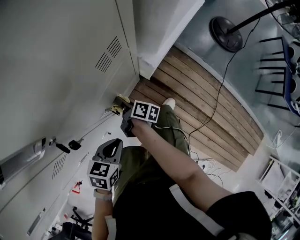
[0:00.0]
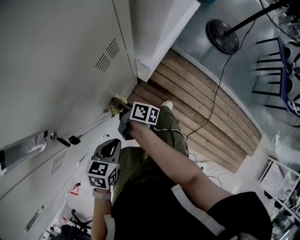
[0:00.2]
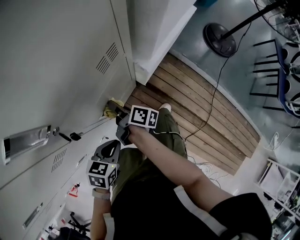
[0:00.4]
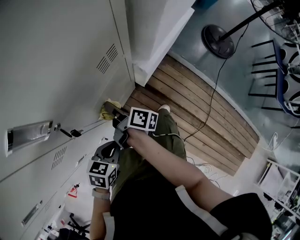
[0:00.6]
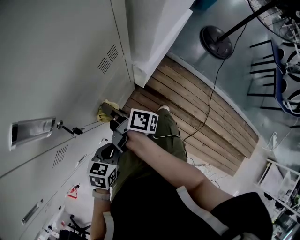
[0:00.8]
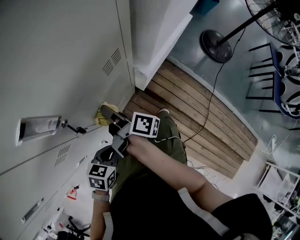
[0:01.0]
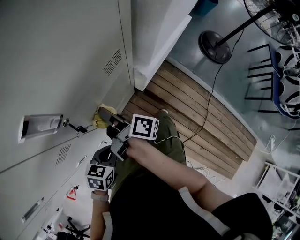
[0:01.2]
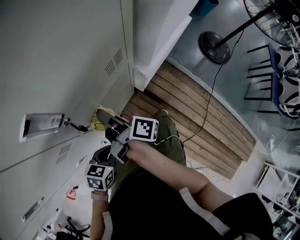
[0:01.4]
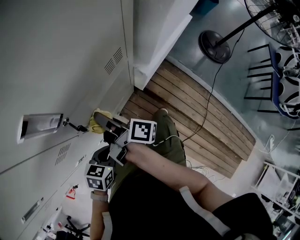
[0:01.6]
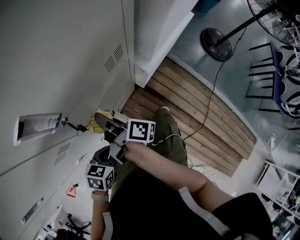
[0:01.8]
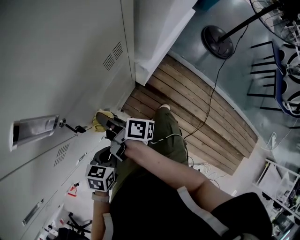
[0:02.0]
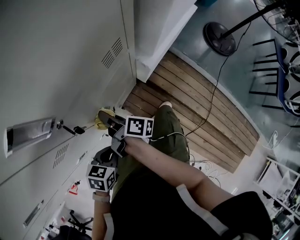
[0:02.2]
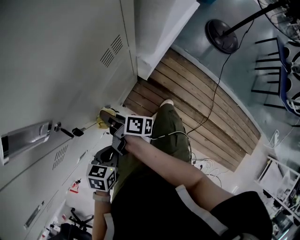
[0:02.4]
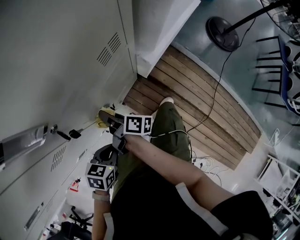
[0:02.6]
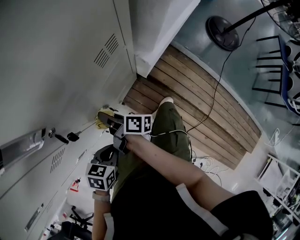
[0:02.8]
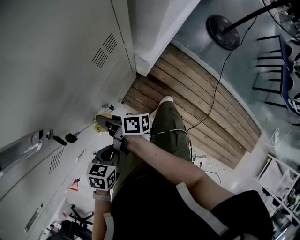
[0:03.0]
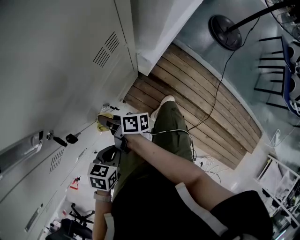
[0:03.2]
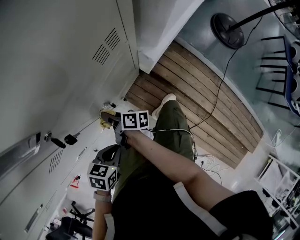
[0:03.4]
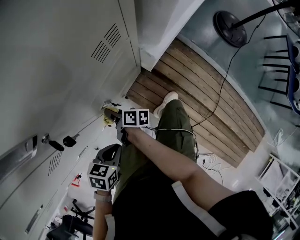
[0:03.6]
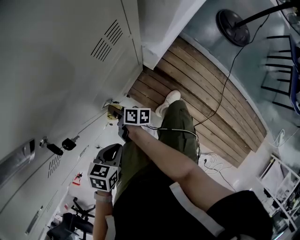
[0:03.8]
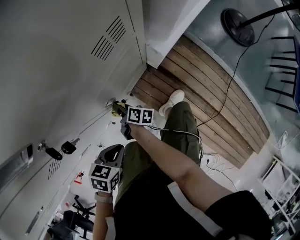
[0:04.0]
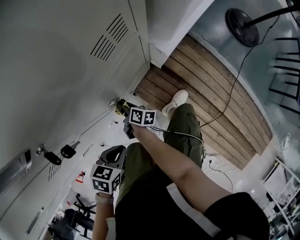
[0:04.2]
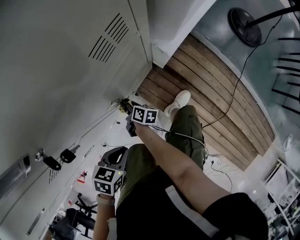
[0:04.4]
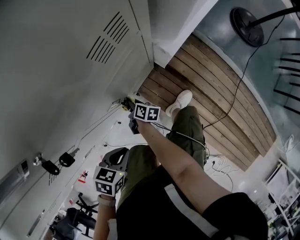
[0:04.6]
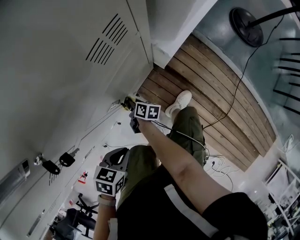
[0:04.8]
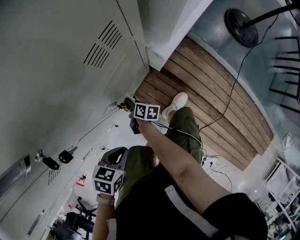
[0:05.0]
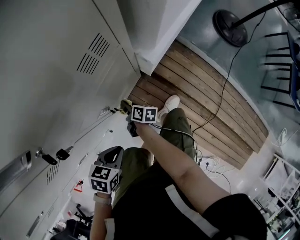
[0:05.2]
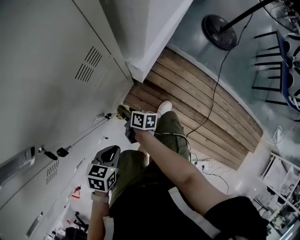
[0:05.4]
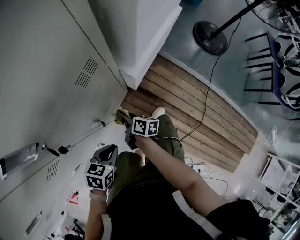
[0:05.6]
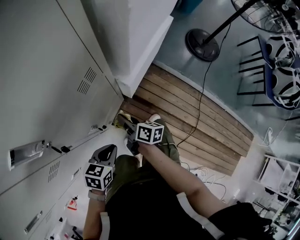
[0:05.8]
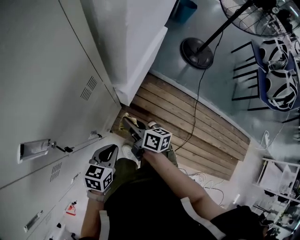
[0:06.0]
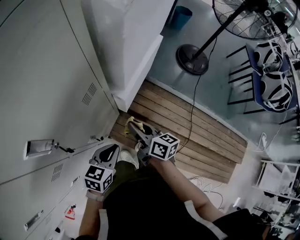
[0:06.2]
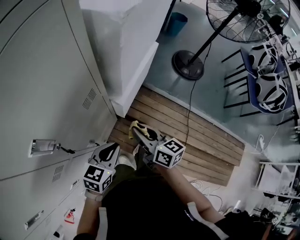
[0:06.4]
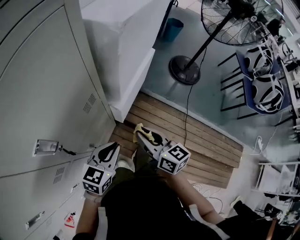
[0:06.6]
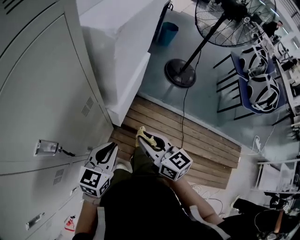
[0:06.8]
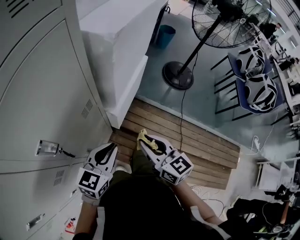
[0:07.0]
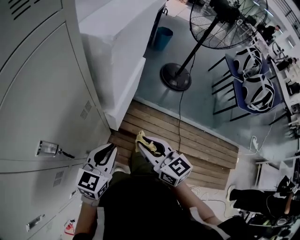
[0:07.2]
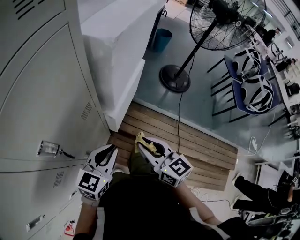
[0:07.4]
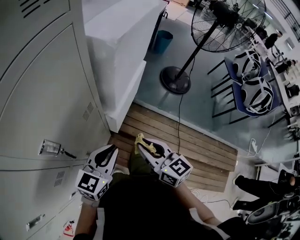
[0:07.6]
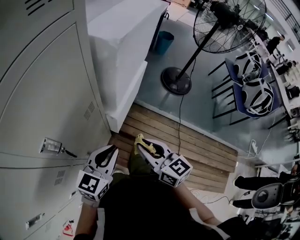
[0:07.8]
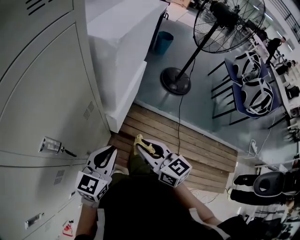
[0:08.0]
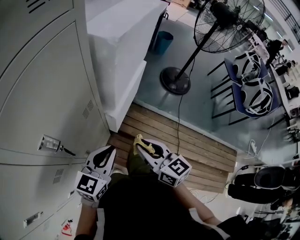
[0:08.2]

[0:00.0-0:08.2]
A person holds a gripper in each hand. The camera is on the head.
0.0 to 1.6 s: The right gripper goes approximately 25 cm upward, and swivels approximately 30 degrees.
1.6 to 3.2 s: The right gripper heads downward, covering approximately 15 cm.
3.2 to 5.0 s: The right gripper heads downward, covering approximately 20 cm, and swivels roughly 30 degrees.
5.0 to 6.6 s: The right gripper moves upward and to the right, approximately 50 cm, and changes its angle by approximately 50 degrees, while the left gripper goes approximately 30 cm upward, forward and to the right, and angles its fingers upward, by some 30 degrees.
6.6 to 8.2 s: The two grippers go about 5 cm upward.

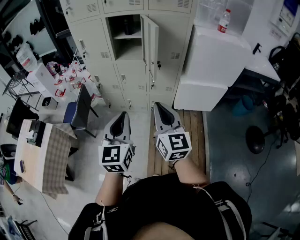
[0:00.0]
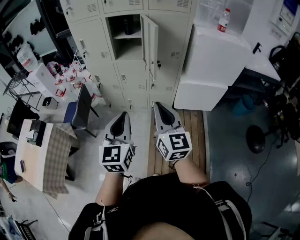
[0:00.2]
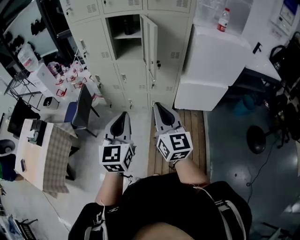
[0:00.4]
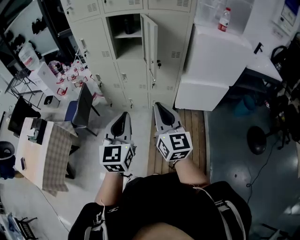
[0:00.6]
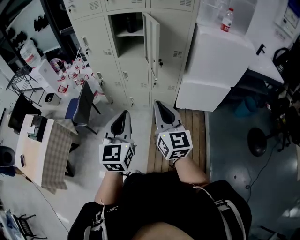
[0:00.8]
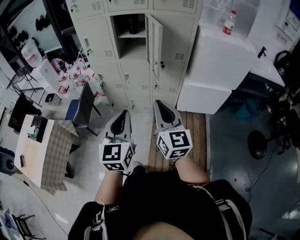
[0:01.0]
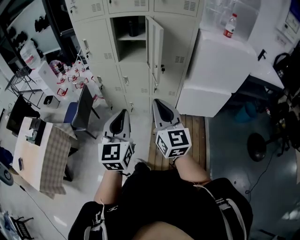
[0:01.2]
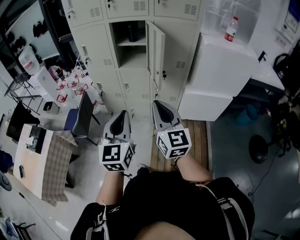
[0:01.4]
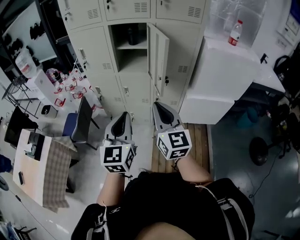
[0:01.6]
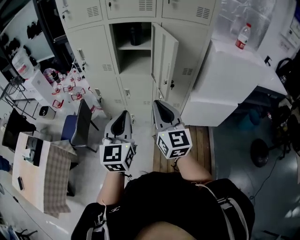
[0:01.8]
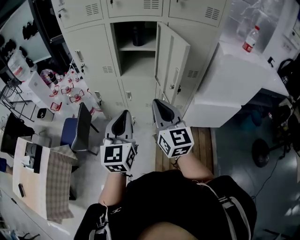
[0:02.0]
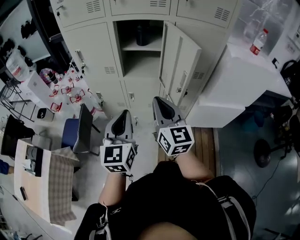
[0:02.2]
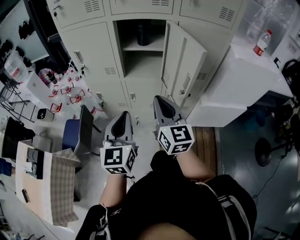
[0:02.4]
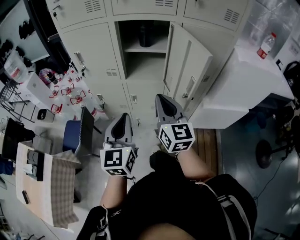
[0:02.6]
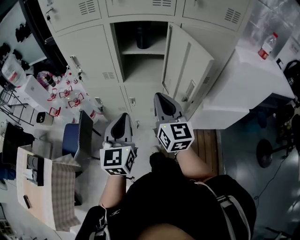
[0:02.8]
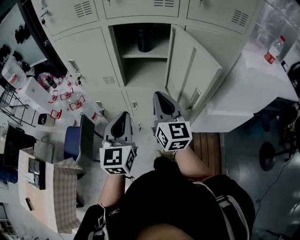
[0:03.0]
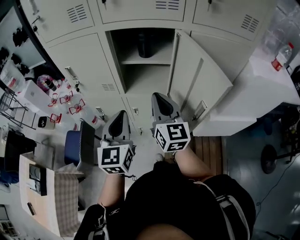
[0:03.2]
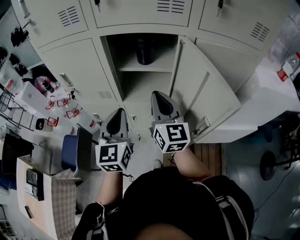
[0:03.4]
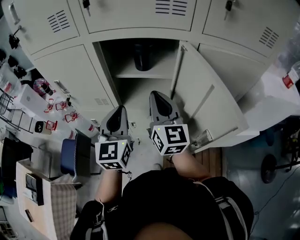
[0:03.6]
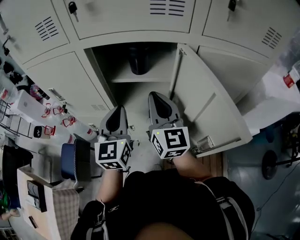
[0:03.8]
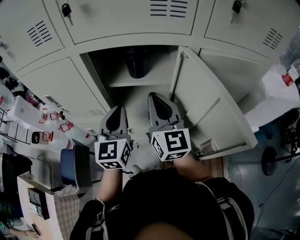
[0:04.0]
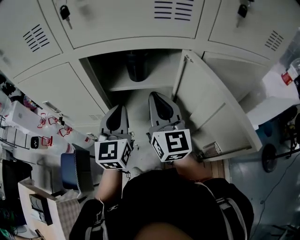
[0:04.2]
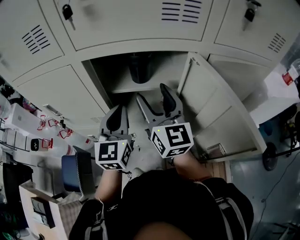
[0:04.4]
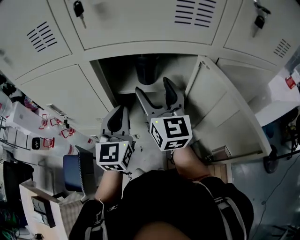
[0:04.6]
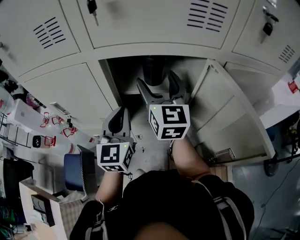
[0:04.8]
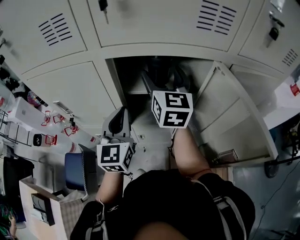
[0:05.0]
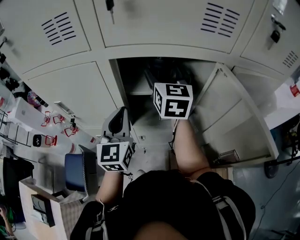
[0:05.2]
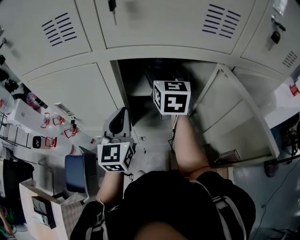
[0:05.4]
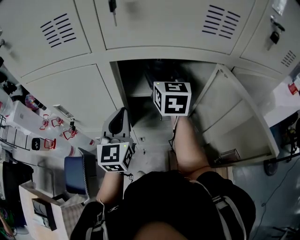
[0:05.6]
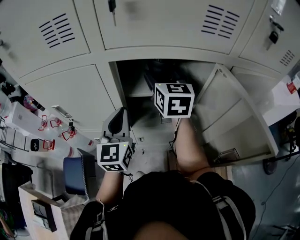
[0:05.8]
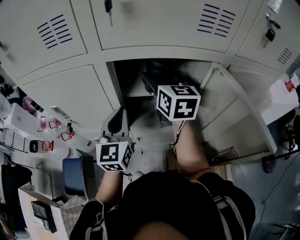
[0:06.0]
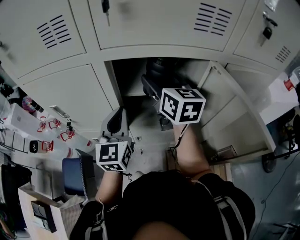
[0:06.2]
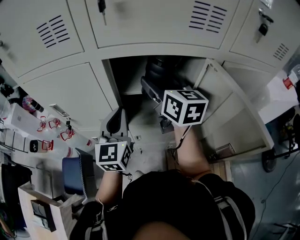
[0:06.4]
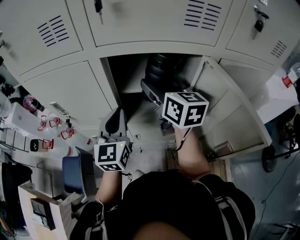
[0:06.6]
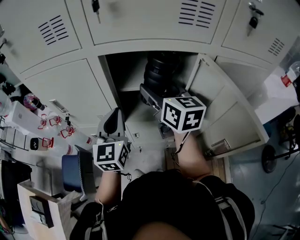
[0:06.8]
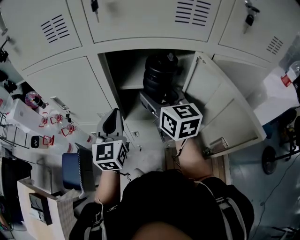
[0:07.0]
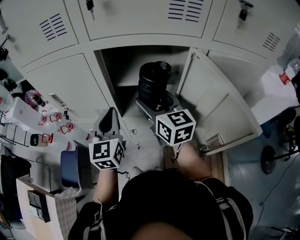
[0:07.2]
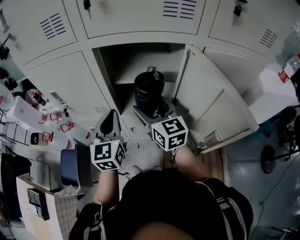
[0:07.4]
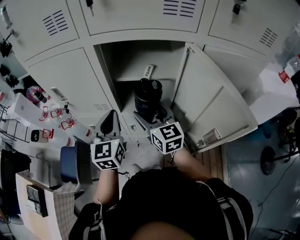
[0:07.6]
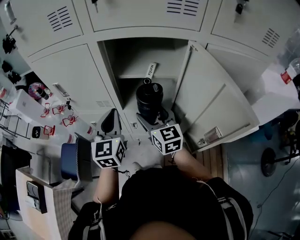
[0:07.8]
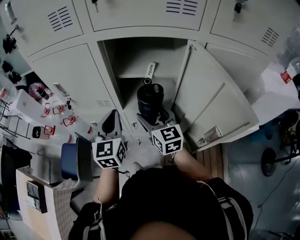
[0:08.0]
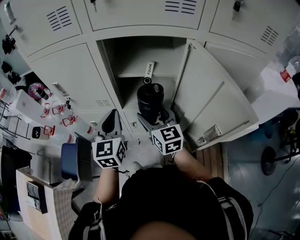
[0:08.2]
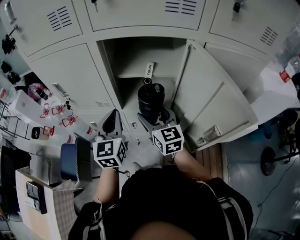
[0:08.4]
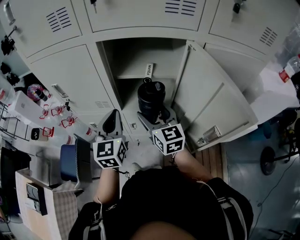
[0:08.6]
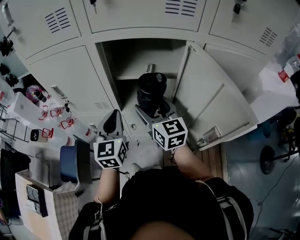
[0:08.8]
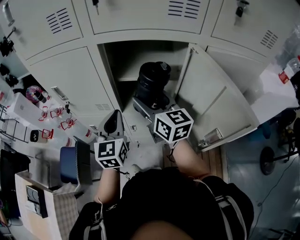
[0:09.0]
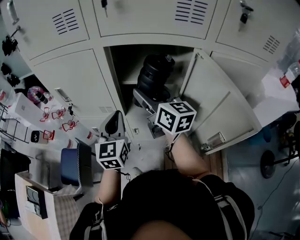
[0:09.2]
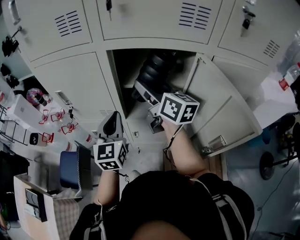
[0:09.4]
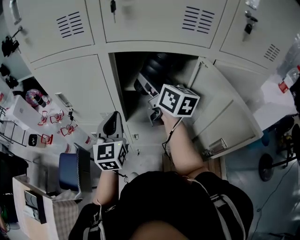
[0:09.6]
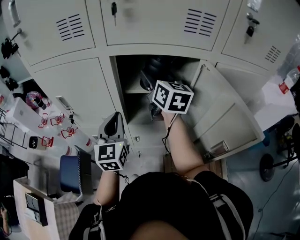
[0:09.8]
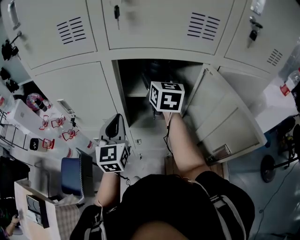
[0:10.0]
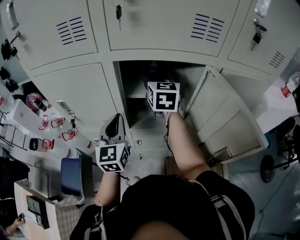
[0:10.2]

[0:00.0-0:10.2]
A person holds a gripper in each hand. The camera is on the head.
0.0 to 1.4 s: Both grippers travel together forward, some 10 cm.
1.4 to 3.0 s: The grippers both shift forward by approximately 35 cm.
3.0 to 4.4 s: The two grippers go roughly 25 cm forward. The right gripper opens.
4.4 to 5.8 s: The left gripper shifts roughly 5 cm to the left, while the right gripper goes approximately 10 cm forward.
5.8 to 7.2 s: The left gripper shifts some 5 cm backward. The right gripper is displaced backward by roughly 15 cm.
8.8 to 10.2 s: The left gripper moves forward, about 5 cm; the right gripper travels forward and upward by about 20 cm, and turns by approximately 20 degrees.

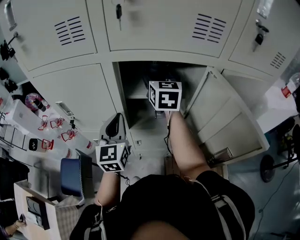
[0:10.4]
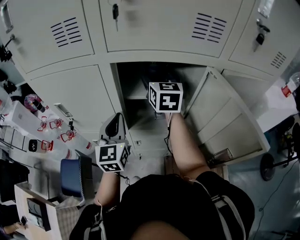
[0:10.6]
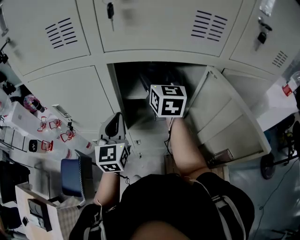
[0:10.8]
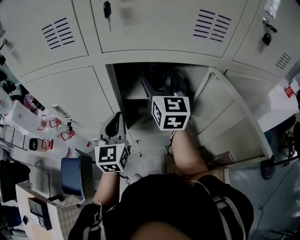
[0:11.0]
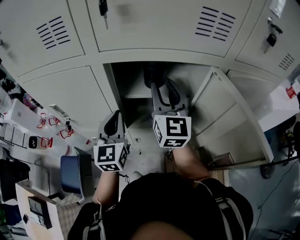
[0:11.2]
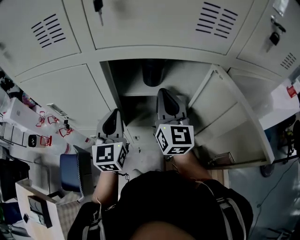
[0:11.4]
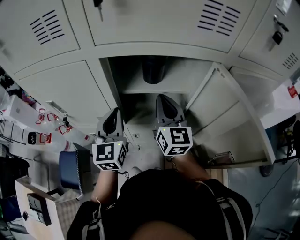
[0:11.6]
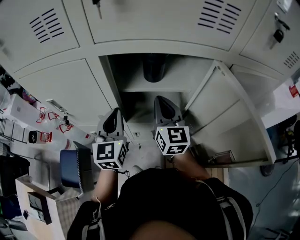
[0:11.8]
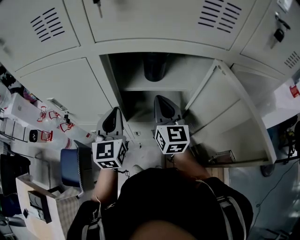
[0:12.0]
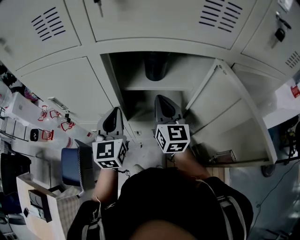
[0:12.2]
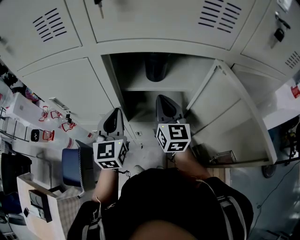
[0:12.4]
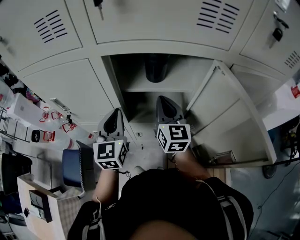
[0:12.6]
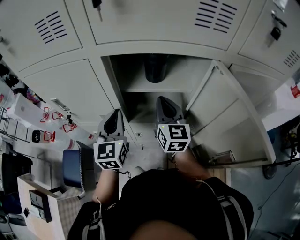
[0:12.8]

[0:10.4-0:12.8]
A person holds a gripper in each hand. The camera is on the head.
10.4 to 11.6 s: The right gripper goes approximately 10 cm backward and downward, and closes its fingers.
11.6 to 12.8 s: The grippers stay close to where they were, moving slightly.

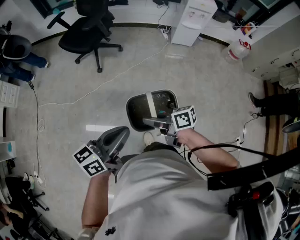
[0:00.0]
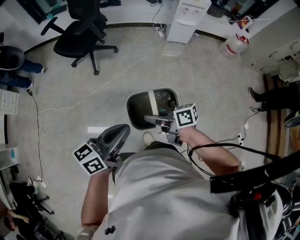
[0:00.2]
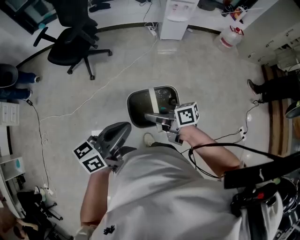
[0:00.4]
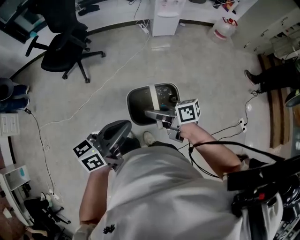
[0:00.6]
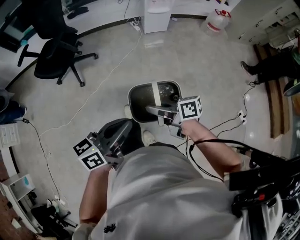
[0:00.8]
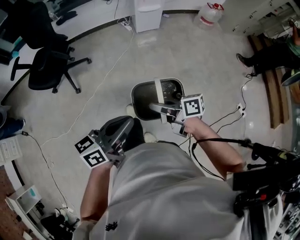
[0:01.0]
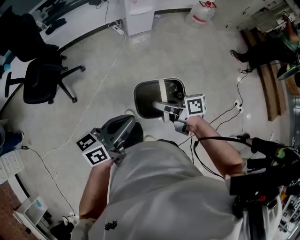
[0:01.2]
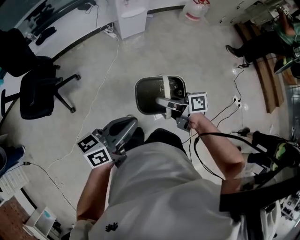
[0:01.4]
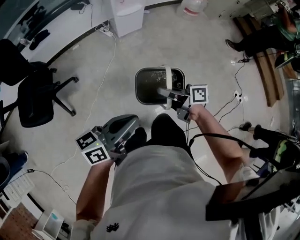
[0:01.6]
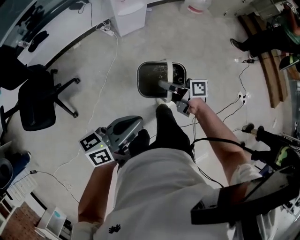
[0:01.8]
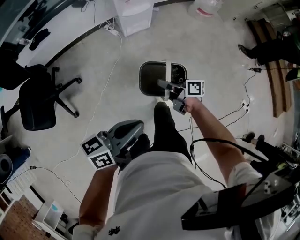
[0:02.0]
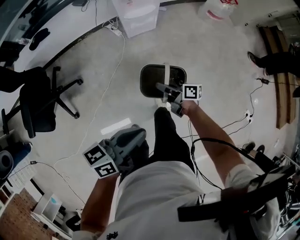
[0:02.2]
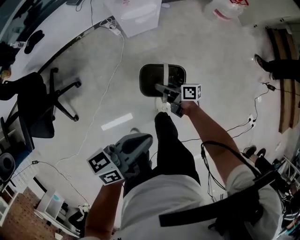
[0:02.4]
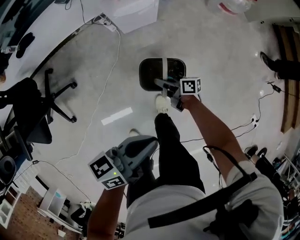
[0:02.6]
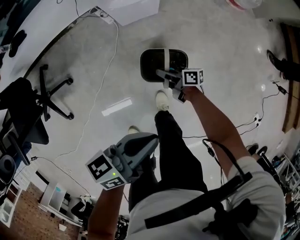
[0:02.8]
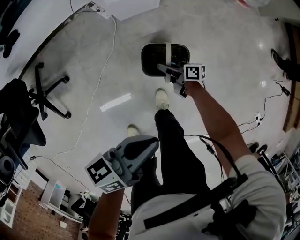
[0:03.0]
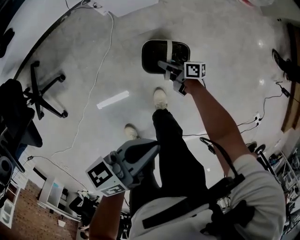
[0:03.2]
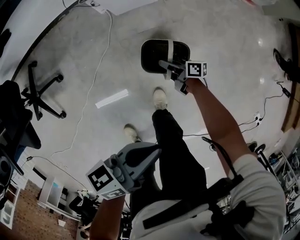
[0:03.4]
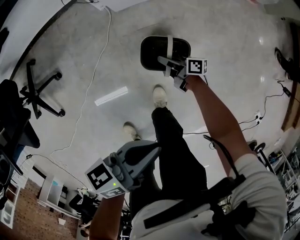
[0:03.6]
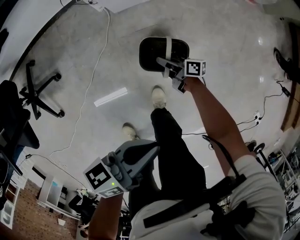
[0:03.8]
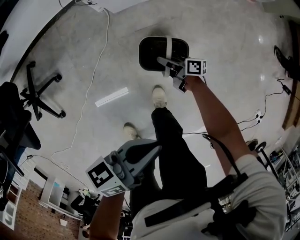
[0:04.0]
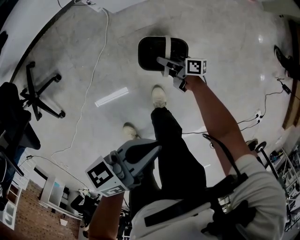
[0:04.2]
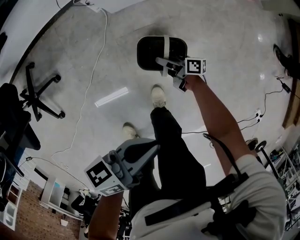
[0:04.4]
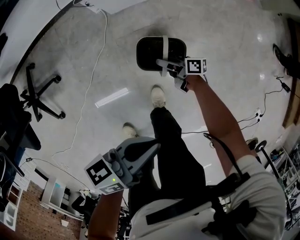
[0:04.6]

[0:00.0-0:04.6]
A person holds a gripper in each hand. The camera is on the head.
0.0 to 1.6 s: The right gripper changes place by roughly 40 cm, and turns by some 40 degrees; the left gripper moves roughly 35 cm, and rotates roughly 40 degrees.
1.6 to 3.0 s: The left gripper moves forward, downward and to the right, roughly 40 cm, while the right gripper goes roughly 60 cm downward and forward.
3.0 to 4.6 s: The left gripper moves roughly 5 cm. The right gripper moves roughly 5 cm, and opens up.
